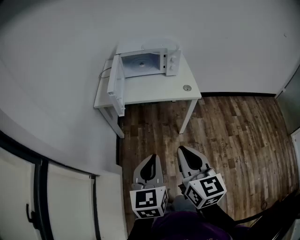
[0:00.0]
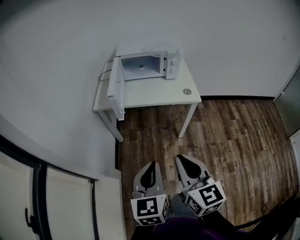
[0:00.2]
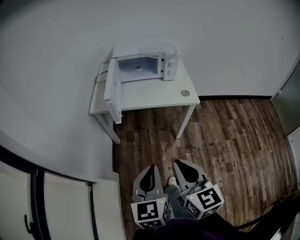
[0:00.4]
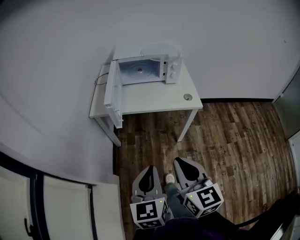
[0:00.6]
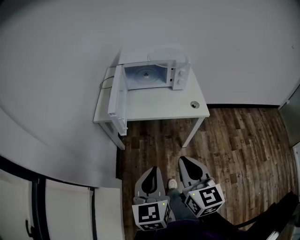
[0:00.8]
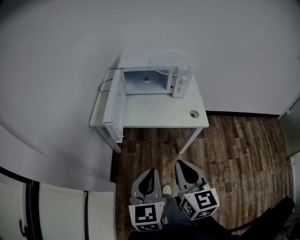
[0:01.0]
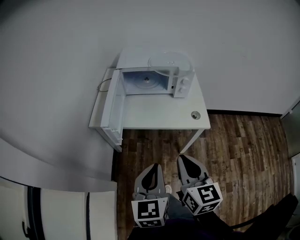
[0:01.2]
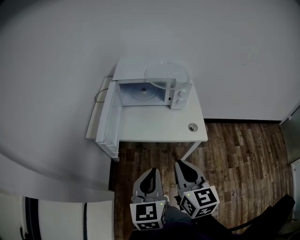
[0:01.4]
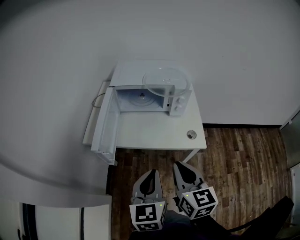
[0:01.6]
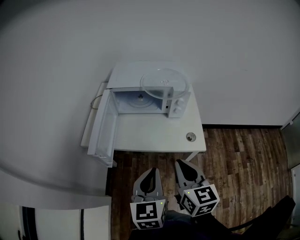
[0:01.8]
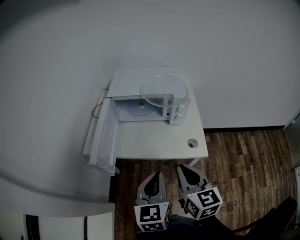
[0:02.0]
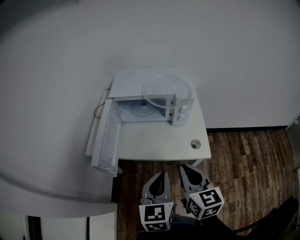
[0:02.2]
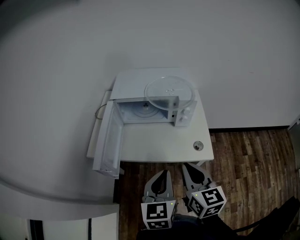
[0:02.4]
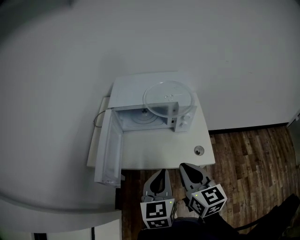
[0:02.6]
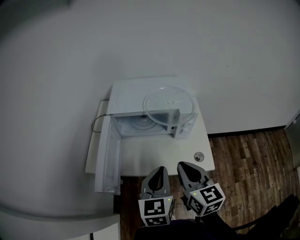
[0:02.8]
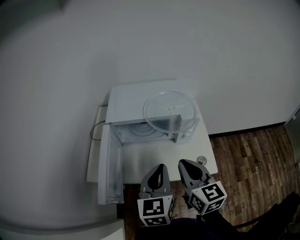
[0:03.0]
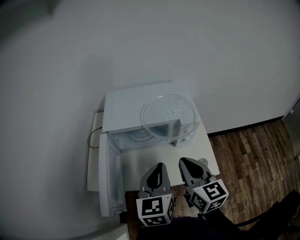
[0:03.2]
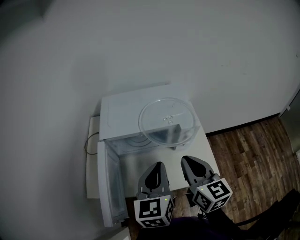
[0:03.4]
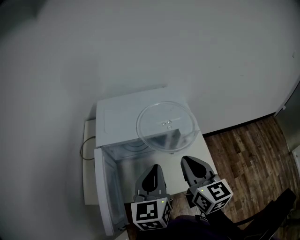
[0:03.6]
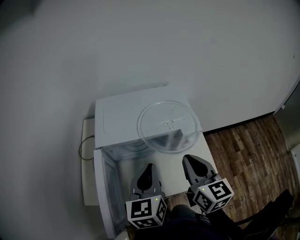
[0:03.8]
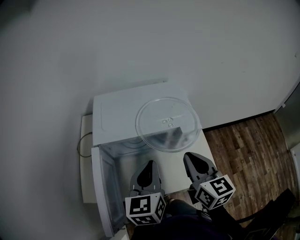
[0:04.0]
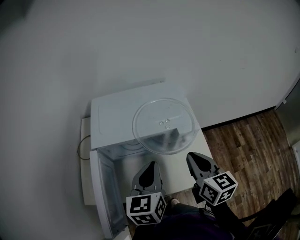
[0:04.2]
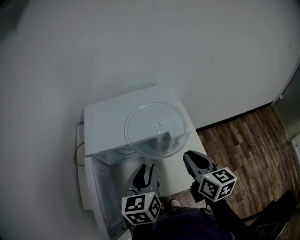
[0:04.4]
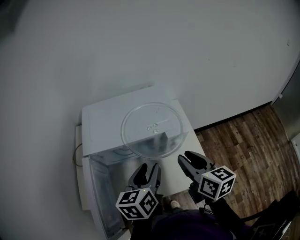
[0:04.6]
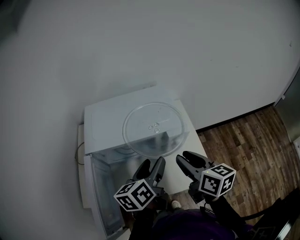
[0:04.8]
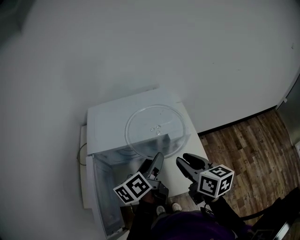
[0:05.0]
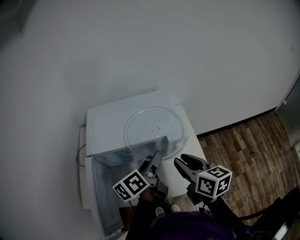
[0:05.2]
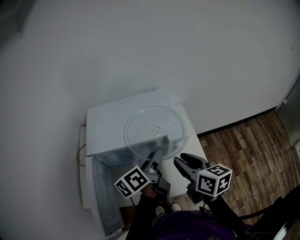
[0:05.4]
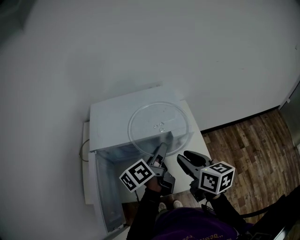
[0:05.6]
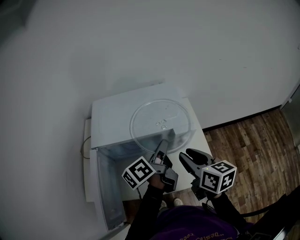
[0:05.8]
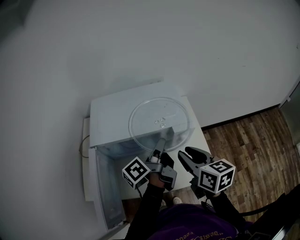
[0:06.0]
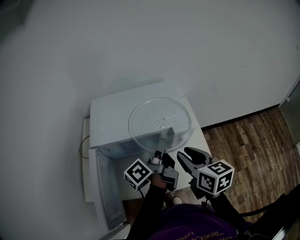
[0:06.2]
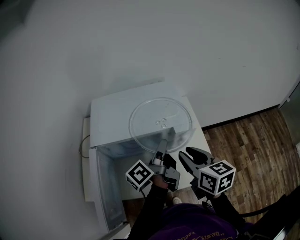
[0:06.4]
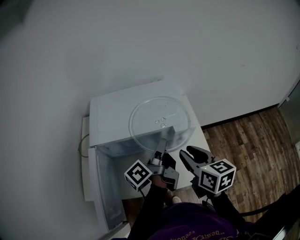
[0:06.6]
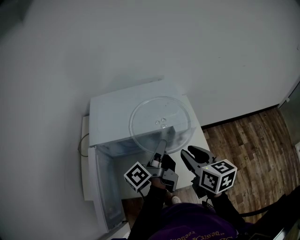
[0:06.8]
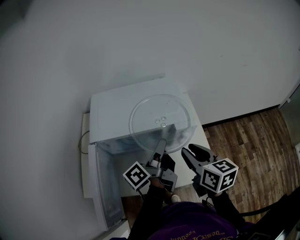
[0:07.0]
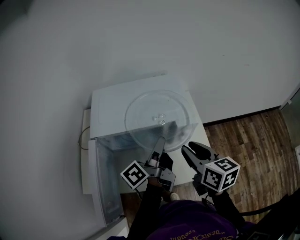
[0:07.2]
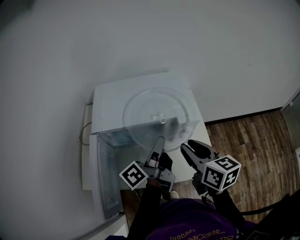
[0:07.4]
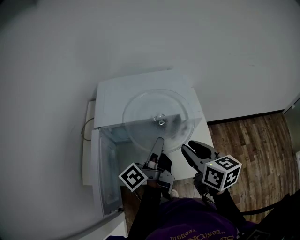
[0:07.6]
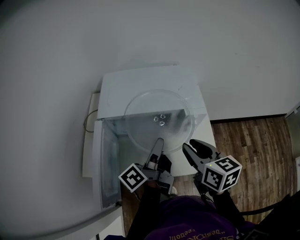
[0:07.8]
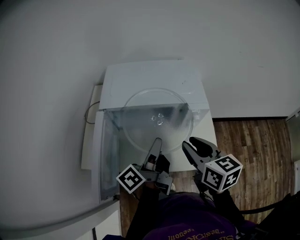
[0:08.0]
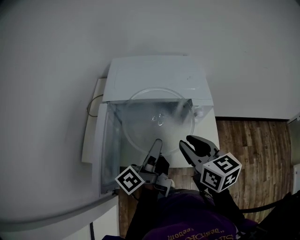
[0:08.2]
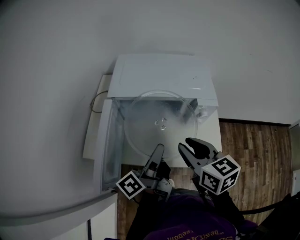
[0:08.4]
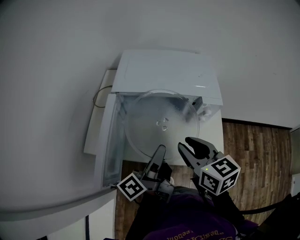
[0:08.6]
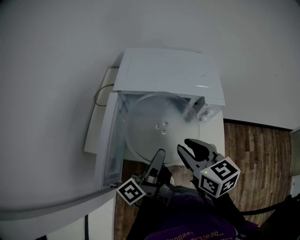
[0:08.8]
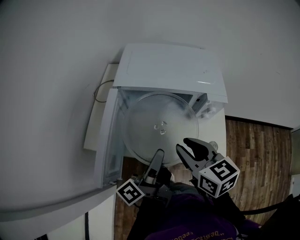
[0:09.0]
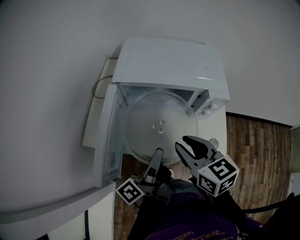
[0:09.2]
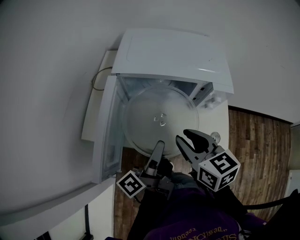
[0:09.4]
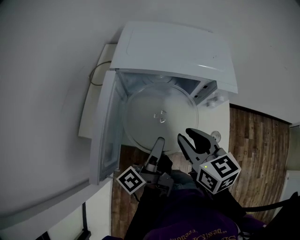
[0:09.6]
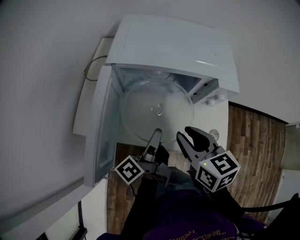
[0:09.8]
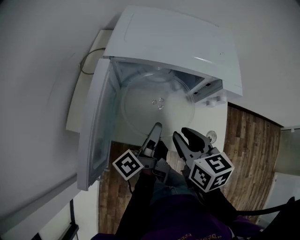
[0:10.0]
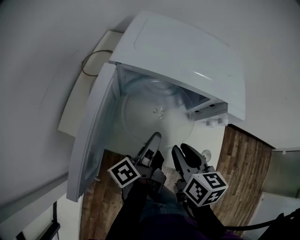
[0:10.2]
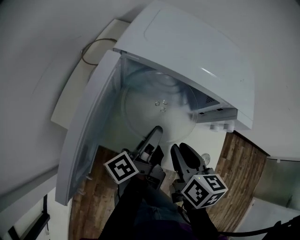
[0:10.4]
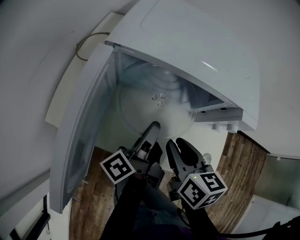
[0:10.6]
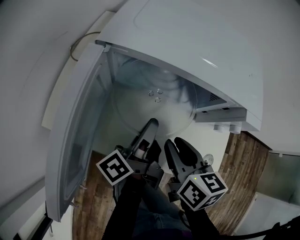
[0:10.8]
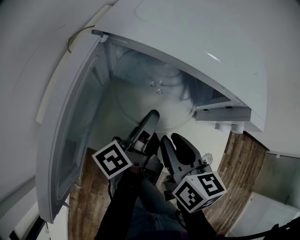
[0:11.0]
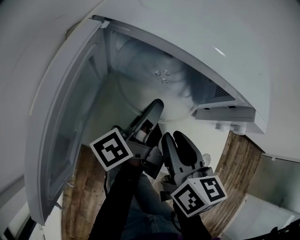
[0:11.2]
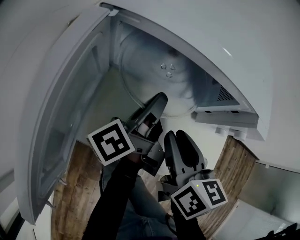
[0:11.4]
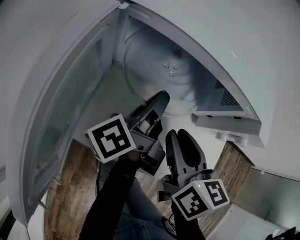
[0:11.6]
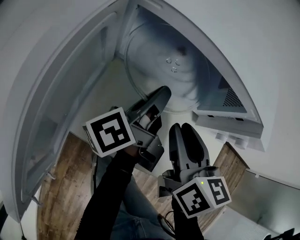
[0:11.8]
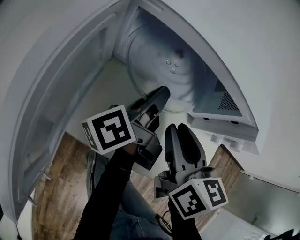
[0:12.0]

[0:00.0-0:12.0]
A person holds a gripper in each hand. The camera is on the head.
0.0 to 1.6 s: The grippers both shift forward by approximately 25 cm.
1.6 to 3.0 s: Both grippers travel together forward, some 20 cm.
3.0 to 4.4 s: The right gripper is displaced forward and to the right by roughly 15 cm. Meanwhile the left gripper shifts about 10 cm forward, and opens up.
4.4 to 6.0 s: The left gripper shifts approximately 5 cm forward, rolls counterclockwise, seen from behind, by about 60 degrees, and closes its fingers. Meanwhile the right gripper opens its fingers.
6.0 to 7.6 s: The left gripper is displaced backward by about 5 cm.
7.6 to 9.0 s: The right gripper moves to the left, approximately 10 cm, and swivels approximately 20 degrees. Meanwhile the left gripper goes about 15 cm backward and to the left.
9.0 to 10.4 s: The left gripper goes some 15 cm downward and forward, while the right gripper goes roughly 10 cm downward, and turns by approximately 20 degrees.
10.4 to 12.0 s: The two grippers go some 10 cm forward.

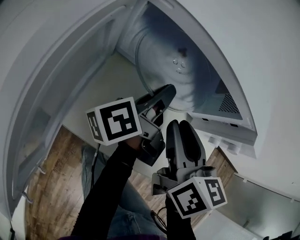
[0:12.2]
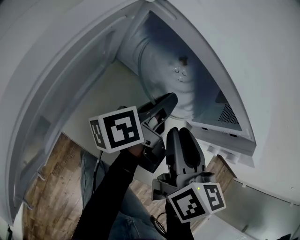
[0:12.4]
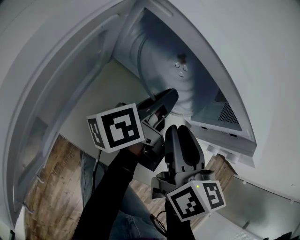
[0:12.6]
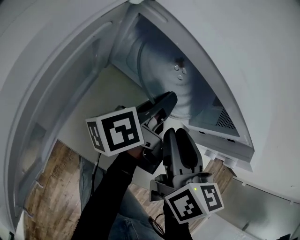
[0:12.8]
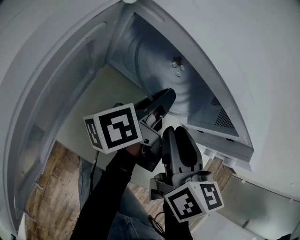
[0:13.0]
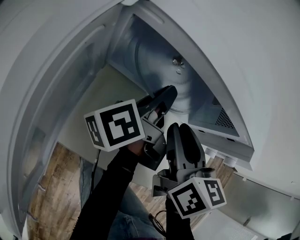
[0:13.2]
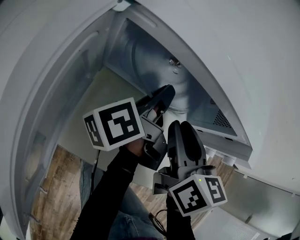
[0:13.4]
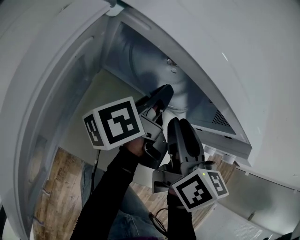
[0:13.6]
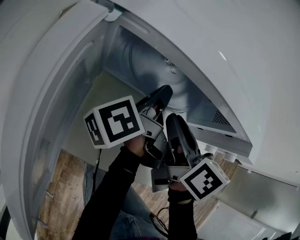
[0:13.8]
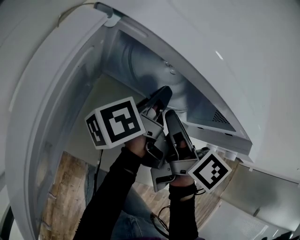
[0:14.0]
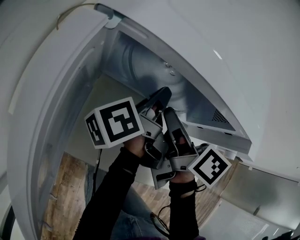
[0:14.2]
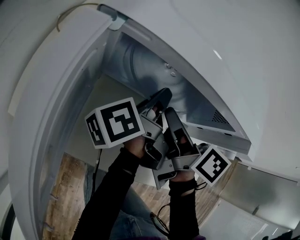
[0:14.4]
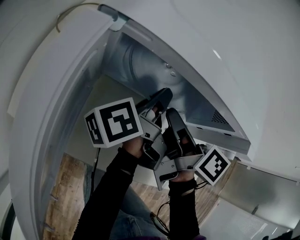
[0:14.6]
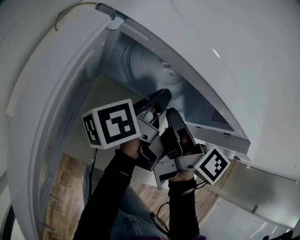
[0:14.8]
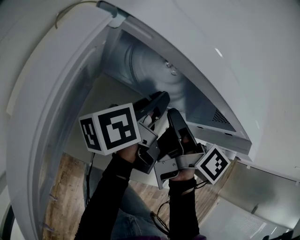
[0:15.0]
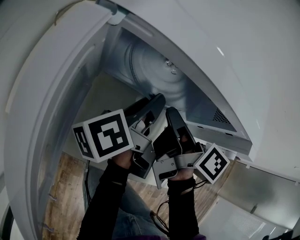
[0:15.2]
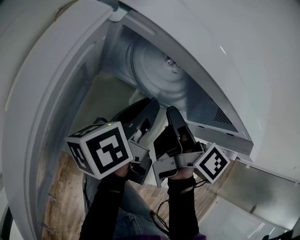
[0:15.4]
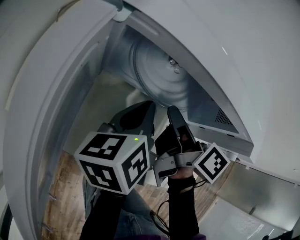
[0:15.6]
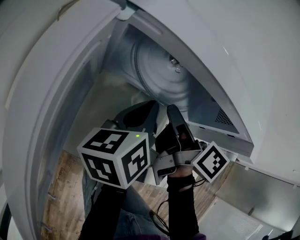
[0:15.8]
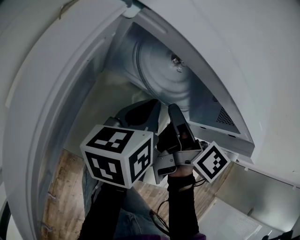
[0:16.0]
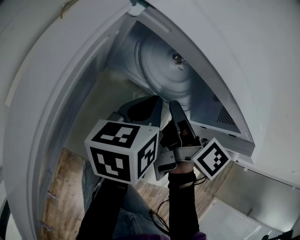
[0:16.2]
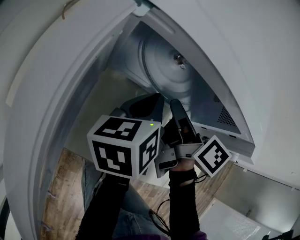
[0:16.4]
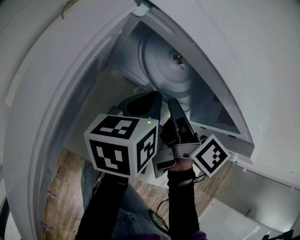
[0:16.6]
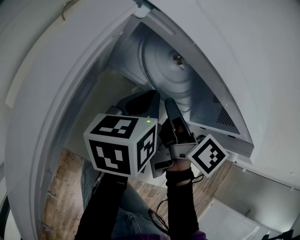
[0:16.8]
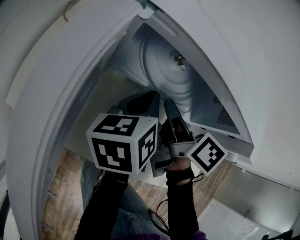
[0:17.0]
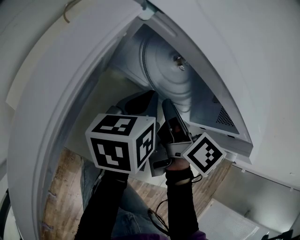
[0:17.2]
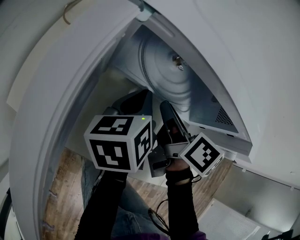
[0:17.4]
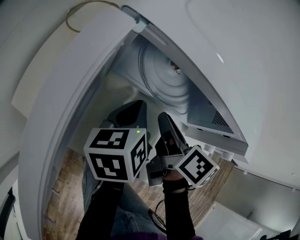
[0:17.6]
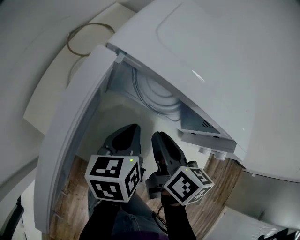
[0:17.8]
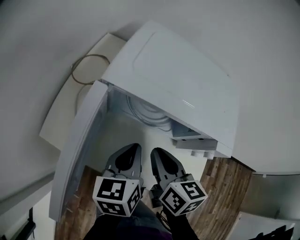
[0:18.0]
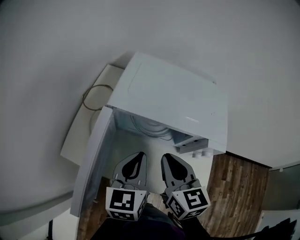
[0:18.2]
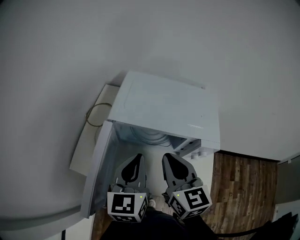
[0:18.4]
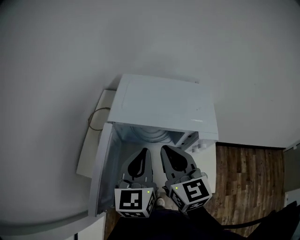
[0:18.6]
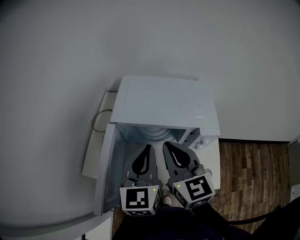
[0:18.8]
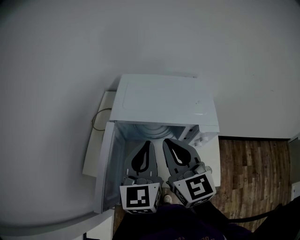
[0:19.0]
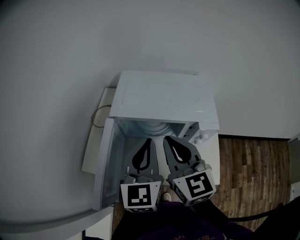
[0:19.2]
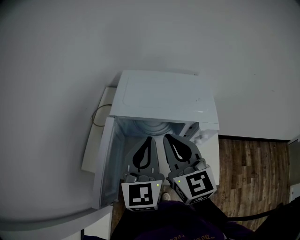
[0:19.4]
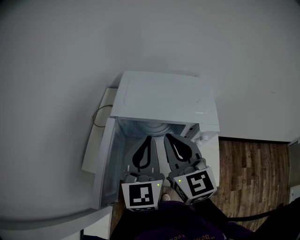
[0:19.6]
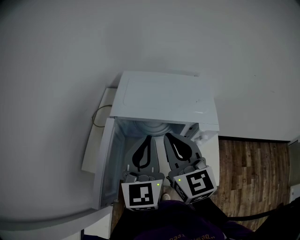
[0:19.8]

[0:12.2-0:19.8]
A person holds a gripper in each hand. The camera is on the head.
12.2 to 13.8 s: The right gripper travels forward by some 5 cm.
13.8 to 15.2 s: The right gripper turns by about 30 degrees.
15.2 to 16.8 s: The left gripper rotates approximately 30 degrees, and closes.
16.8 to 18.2 s: Both grippers move upward and backward, approximately 20 cm. The left gripper swivels about 30 degrees. The right gripper rolls counterclockwise, seen from behind, by approximately 40 degrees.
18.2 to 19.8 s: Both grippers travel together upward, about 10 cm. The left gripper turns by roughly 20 degrees.

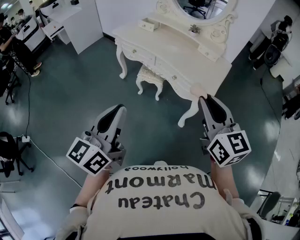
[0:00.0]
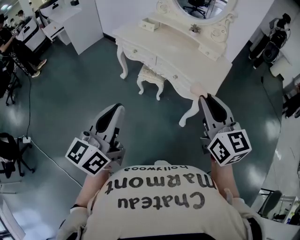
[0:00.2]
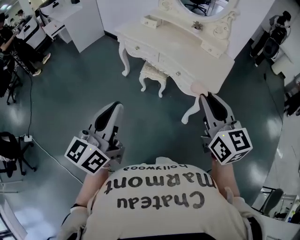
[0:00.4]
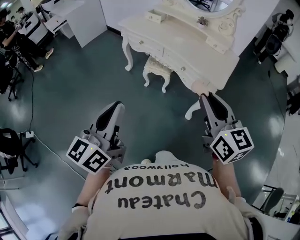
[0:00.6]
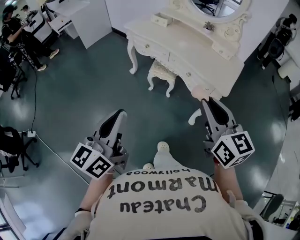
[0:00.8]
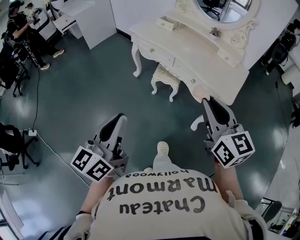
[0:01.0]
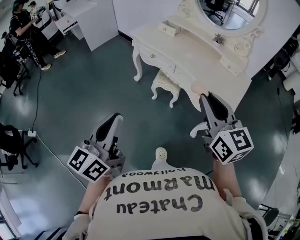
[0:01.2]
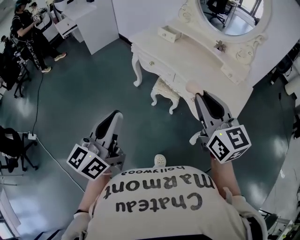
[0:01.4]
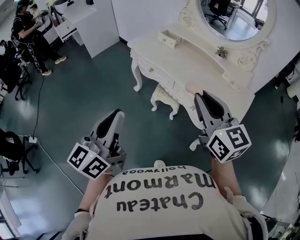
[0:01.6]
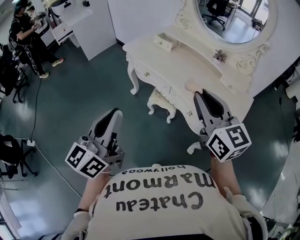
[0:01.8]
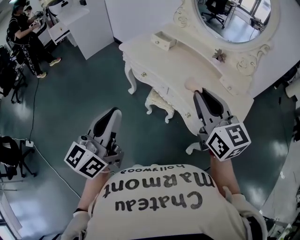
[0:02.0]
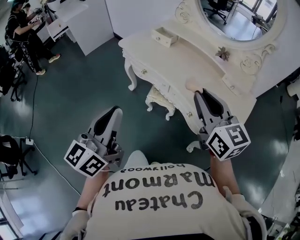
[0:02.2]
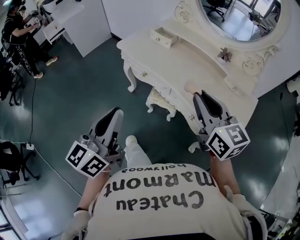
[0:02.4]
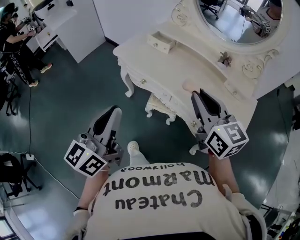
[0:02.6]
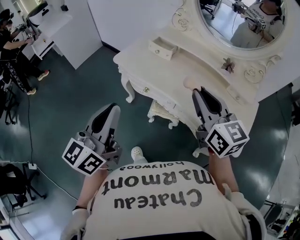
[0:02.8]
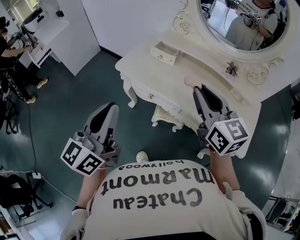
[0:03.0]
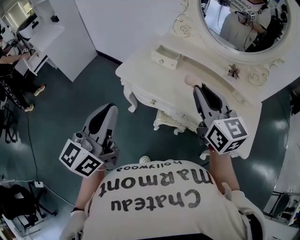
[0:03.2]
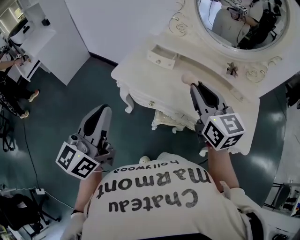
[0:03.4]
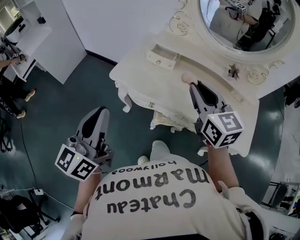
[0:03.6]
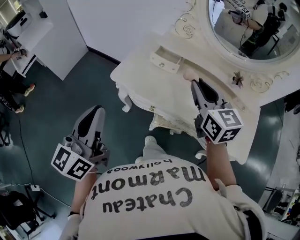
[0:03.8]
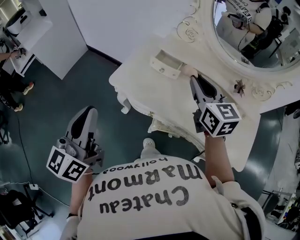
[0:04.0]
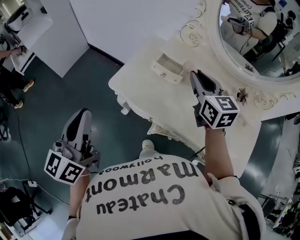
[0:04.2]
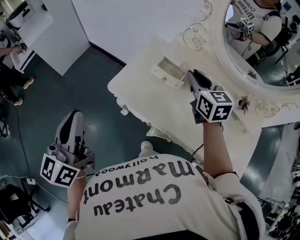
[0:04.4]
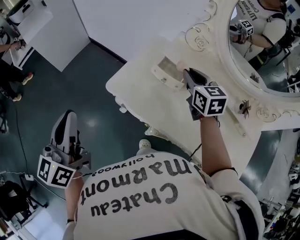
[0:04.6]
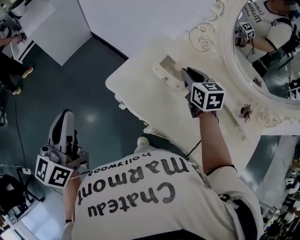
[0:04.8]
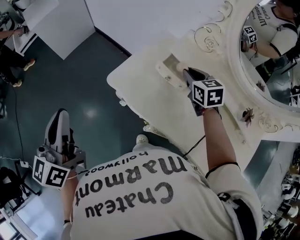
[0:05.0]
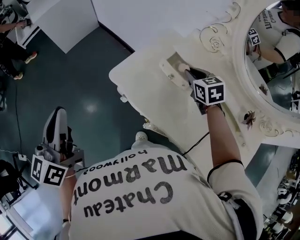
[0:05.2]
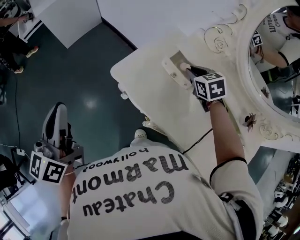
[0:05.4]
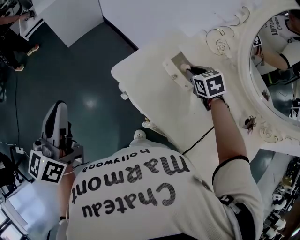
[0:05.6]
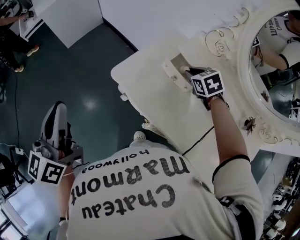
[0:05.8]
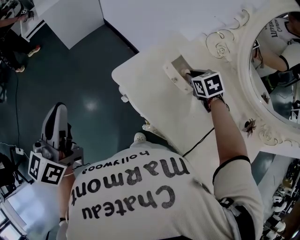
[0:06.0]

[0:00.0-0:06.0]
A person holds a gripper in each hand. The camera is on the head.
0.0 to 1.6 s: Both grippers move forward, approximately 20 cm.
1.6 to 3.0 s: Both grippers move forward, approximately 25 cm.
3.0 to 4.4 s: The left gripper is displaced forward and to the left by roughly 25 cm; the right gripper is displaced forward by approximately 30 cm.
4.4 to 6.0 s: The right gripper goes about 20 cm downward and forward, and tilts its fingers roughly 40 degrees downward.
